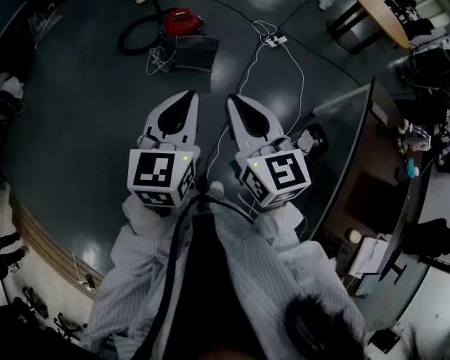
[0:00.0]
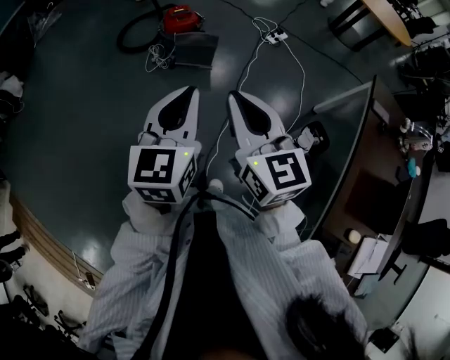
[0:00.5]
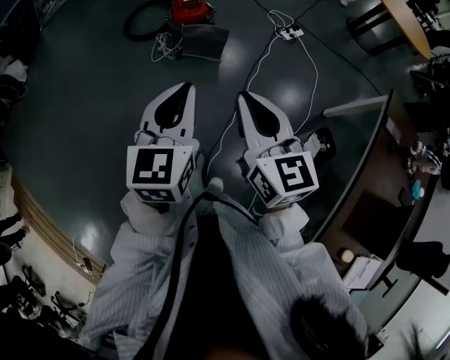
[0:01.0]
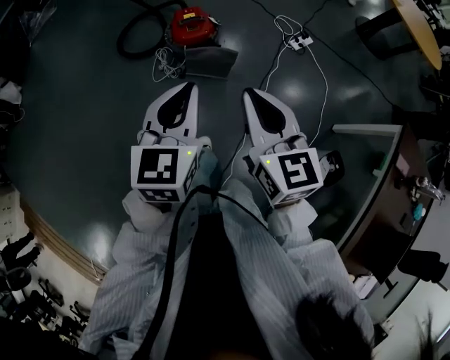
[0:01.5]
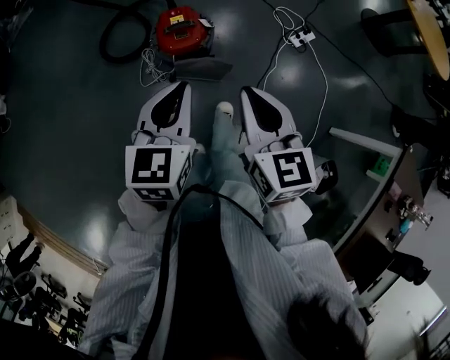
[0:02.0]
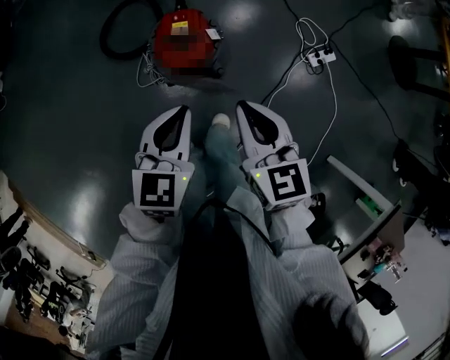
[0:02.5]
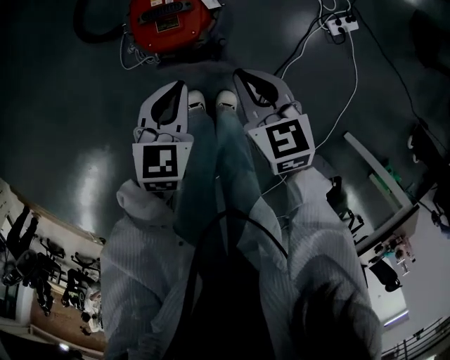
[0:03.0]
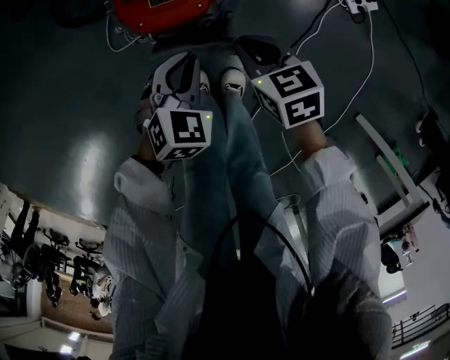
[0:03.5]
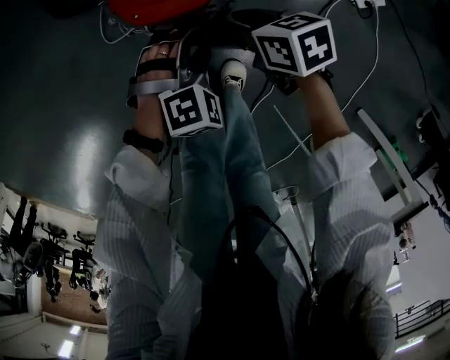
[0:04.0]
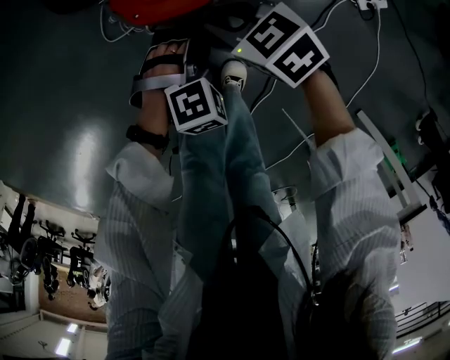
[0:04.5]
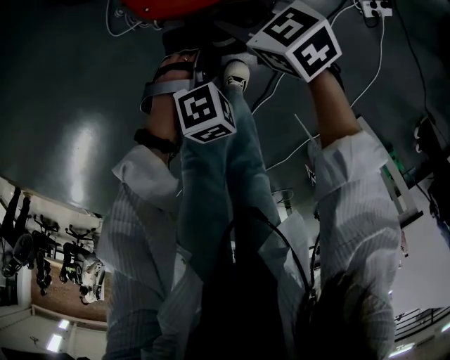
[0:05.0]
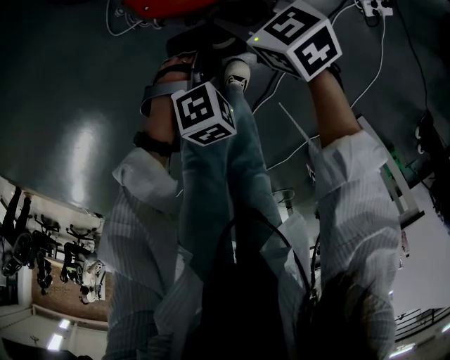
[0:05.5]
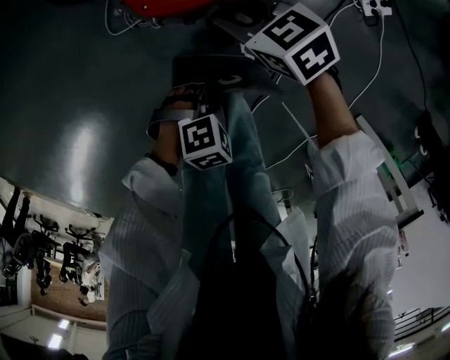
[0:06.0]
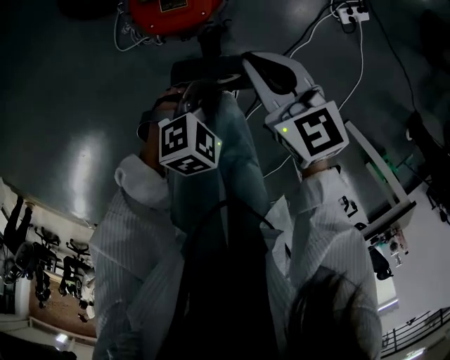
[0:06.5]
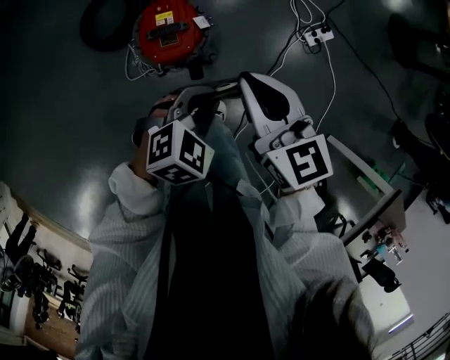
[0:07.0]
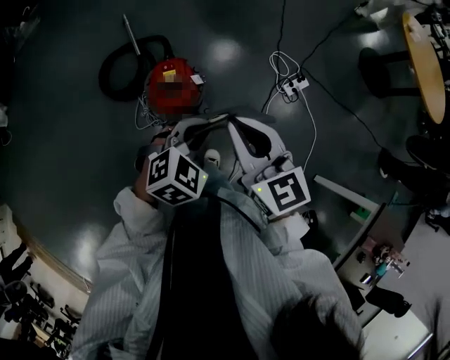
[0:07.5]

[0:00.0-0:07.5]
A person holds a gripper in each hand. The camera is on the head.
0:00.0 to 0:02.0: The pair of grippers is taken forward, some 50 cm.
0:02.0 to 0:04.0: The grippers both shift downward by about 60 cm. The right gripper turns by approximately 60 degrees, and opens up; the left gripper rolls clockwise, seen from behind, by some 50 degrees, and opens its fingers.
0:04.0 to 0:05.5: The left gripper moves roughly 5 cm, and closes up. Meanwhile the right gripper swivels roughly 30 degrees.
0:05.5 to 0:07.5: Both grippers travel together upward, about 50 cm. The left gripper changes its angle by roughly 20 degrees, while the right gripper tilts its fingers roughly 30 degrees upward, and closes up.

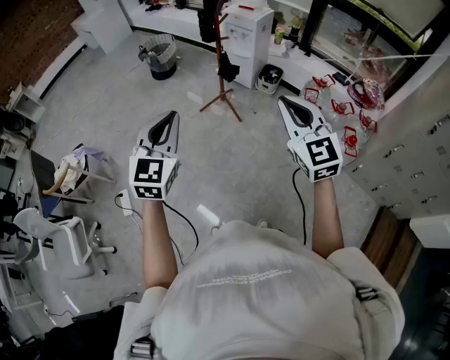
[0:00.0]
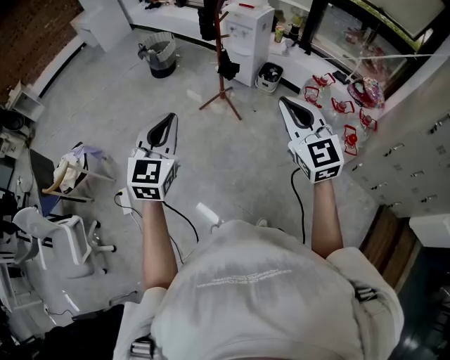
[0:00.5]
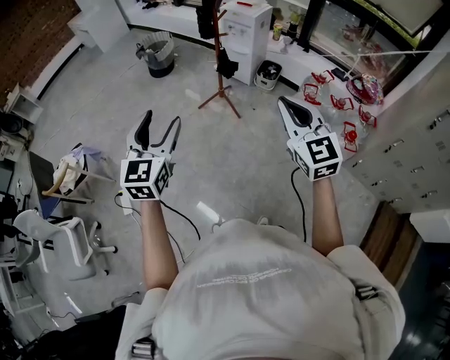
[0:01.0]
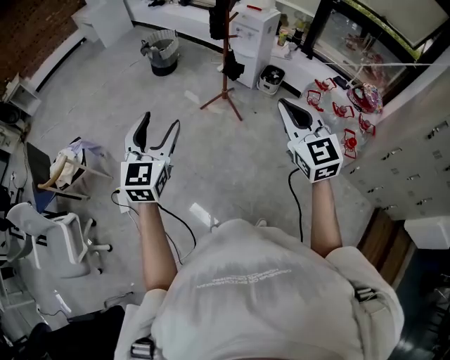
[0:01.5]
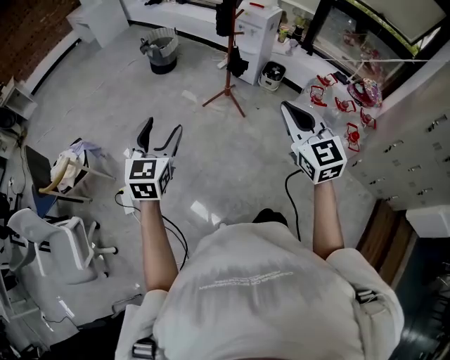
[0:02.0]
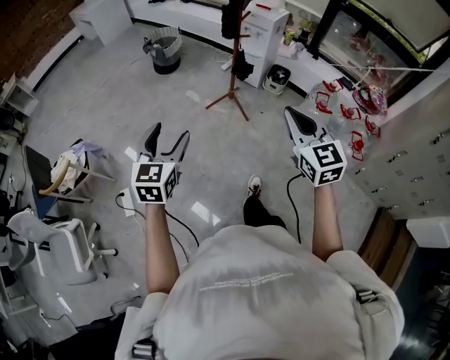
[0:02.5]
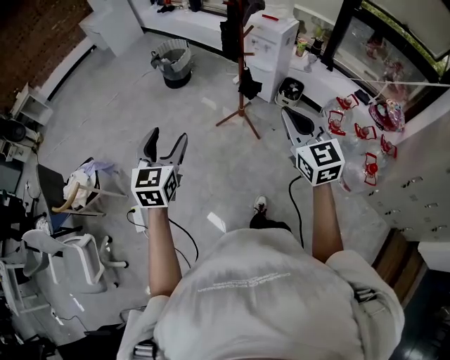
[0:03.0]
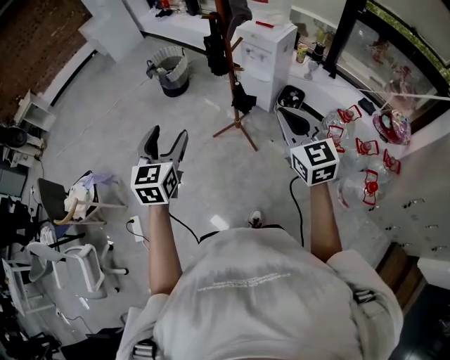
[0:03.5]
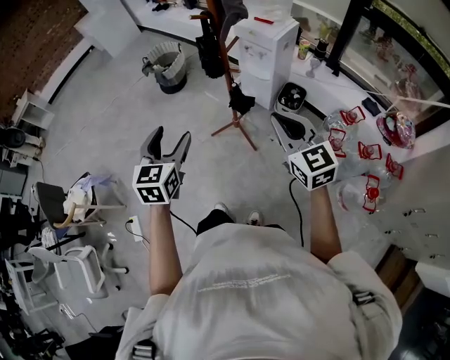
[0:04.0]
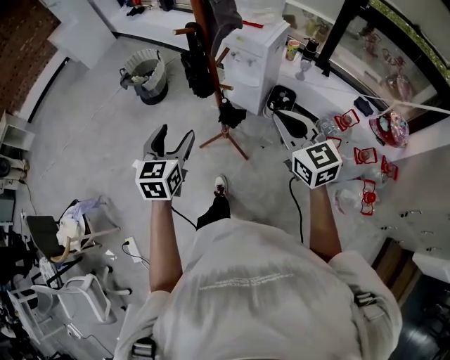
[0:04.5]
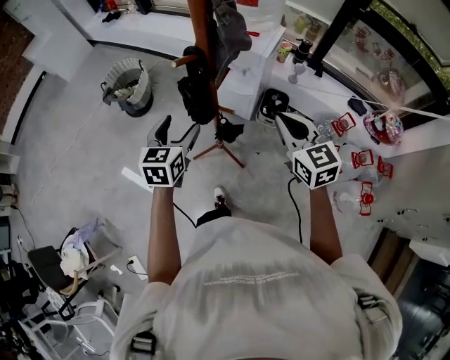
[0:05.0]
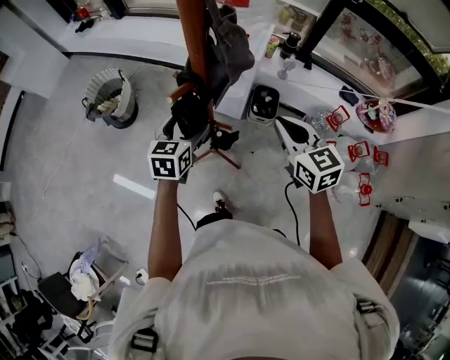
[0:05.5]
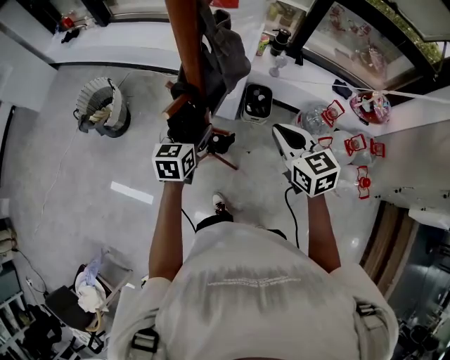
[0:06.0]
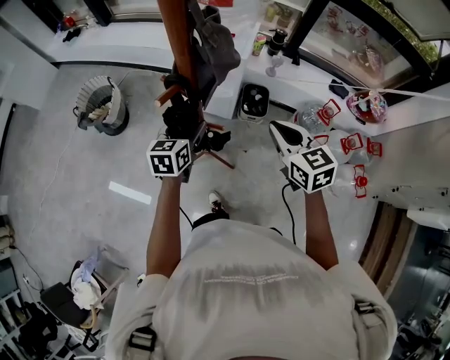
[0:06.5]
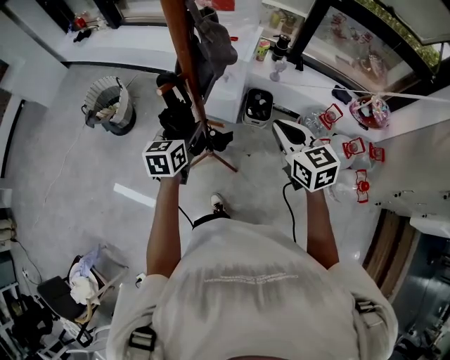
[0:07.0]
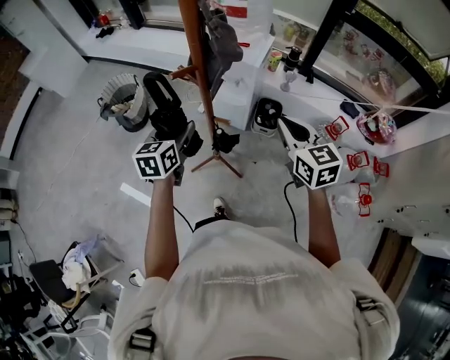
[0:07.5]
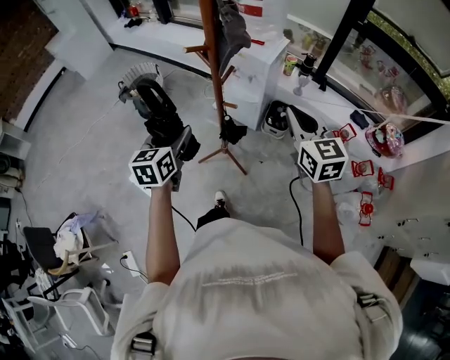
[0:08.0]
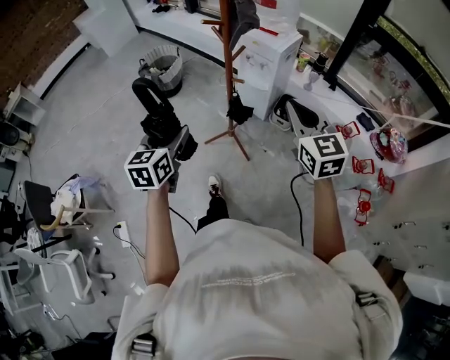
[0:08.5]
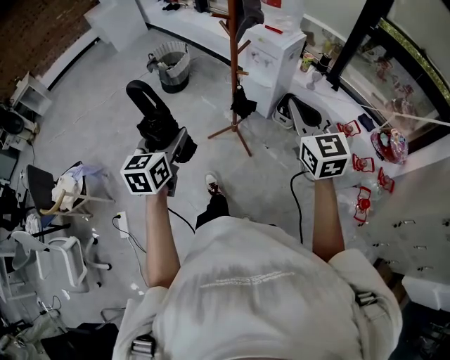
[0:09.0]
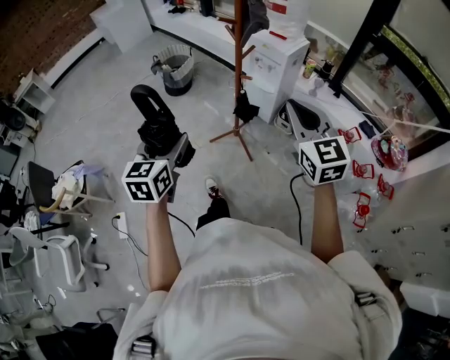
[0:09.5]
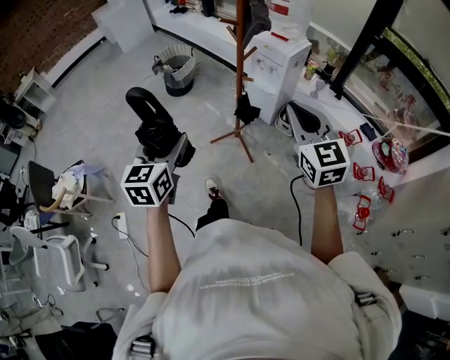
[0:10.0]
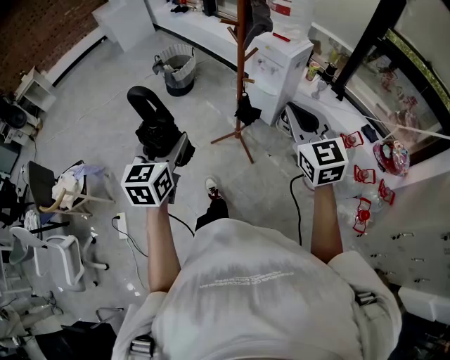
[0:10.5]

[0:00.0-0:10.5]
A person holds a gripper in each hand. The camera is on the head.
0:00.0 to 0:02.0: The right gripper moves to the left, some 10 cm, while the left gripper goes approximately 15 cm to the left and downward, and opens.
0:02.0 to 0:04.0: Both grippers move forward and to the right, some 35 cm.
0:04.0 to 0:06.5: The left gripper moves roughly 40 cm, and turns by approximately 30 degrees. The right gripper ends up roughly 25 cm from where it was, and swivels some 30 degrees.
0:06.5 to 0:08.5: The left gripper travels backward by about 35 cm, and swivels about 30 degrees. The right gripper goes about 20 cm backward and upward, and swivels some 30 degrees.
0:08.5 to 0:10.5: The right gripper ends up approximately 5 cm from where it was. The left gripper heads backward, covering about 10 cm.

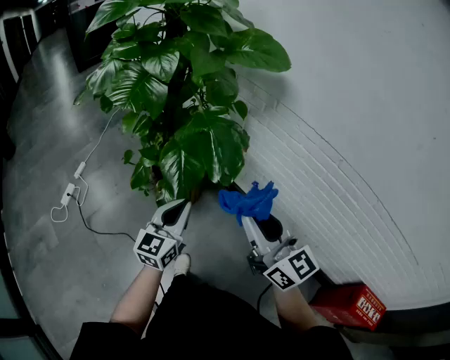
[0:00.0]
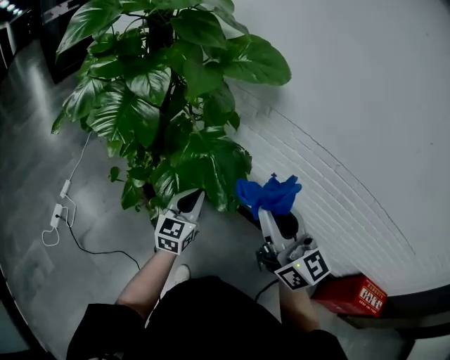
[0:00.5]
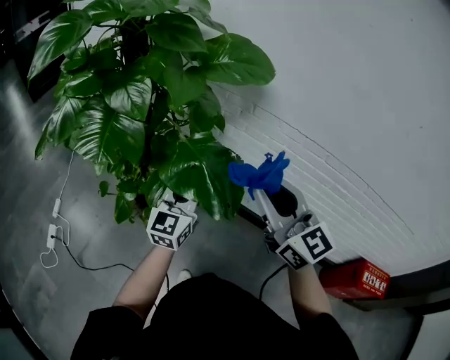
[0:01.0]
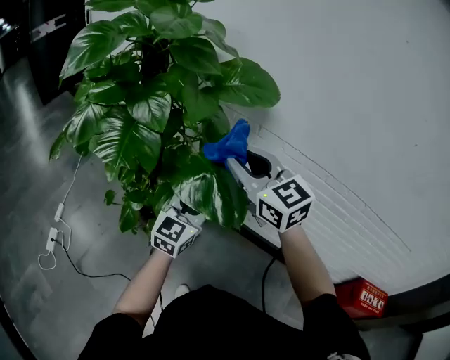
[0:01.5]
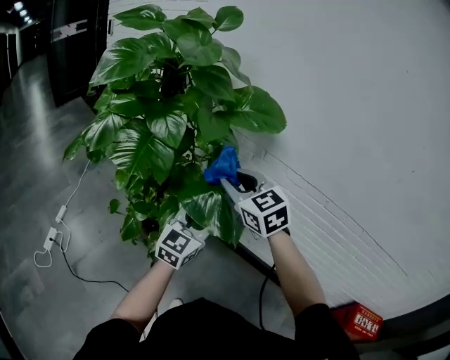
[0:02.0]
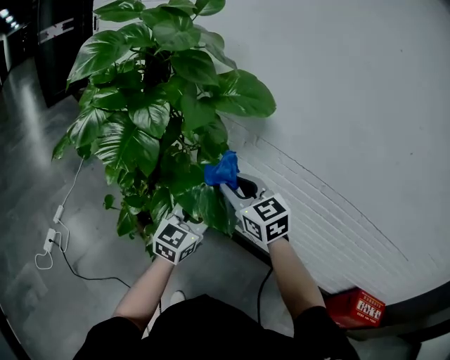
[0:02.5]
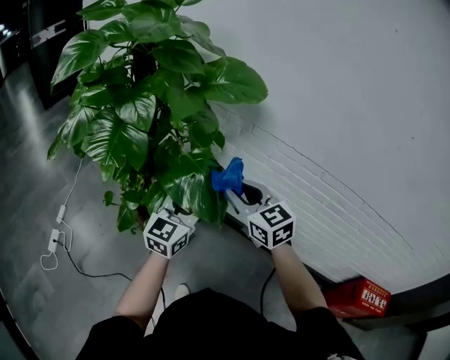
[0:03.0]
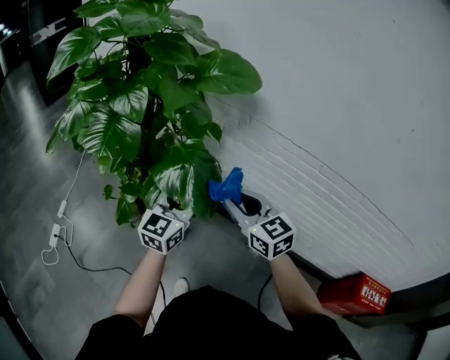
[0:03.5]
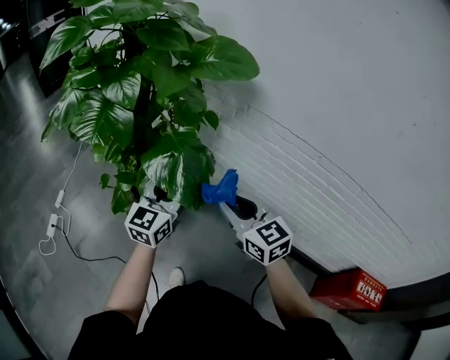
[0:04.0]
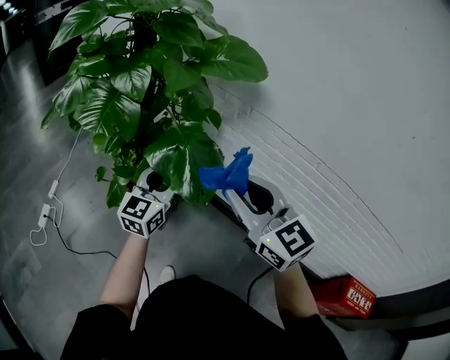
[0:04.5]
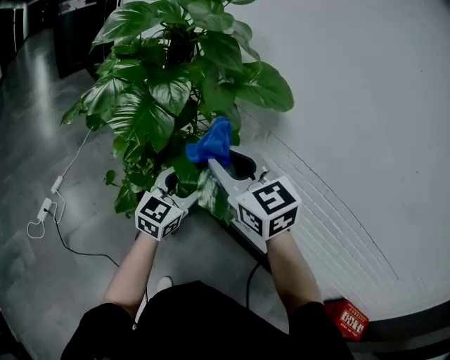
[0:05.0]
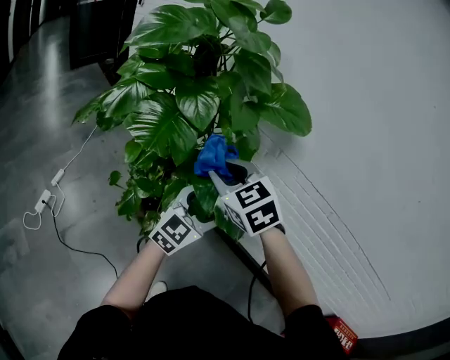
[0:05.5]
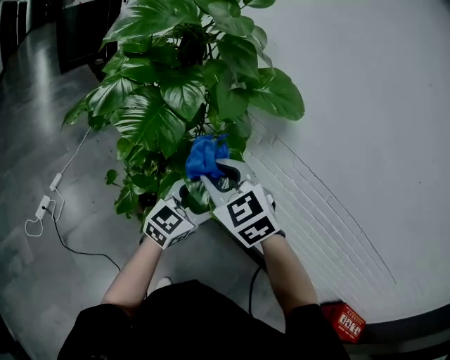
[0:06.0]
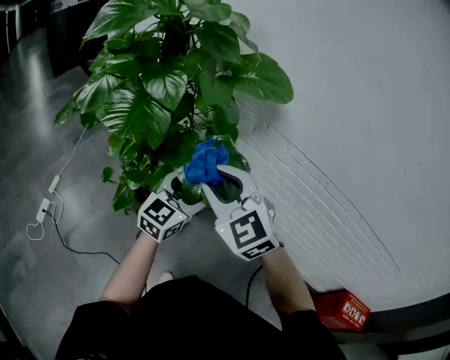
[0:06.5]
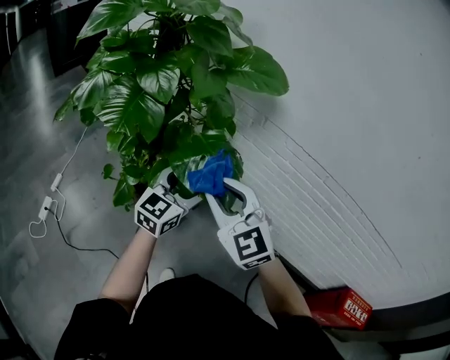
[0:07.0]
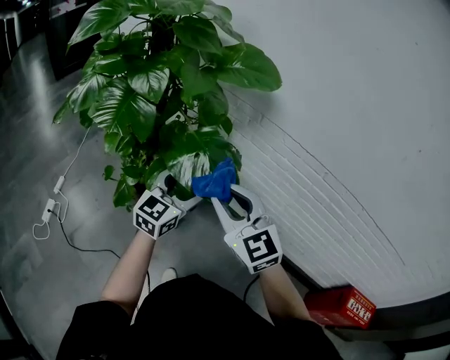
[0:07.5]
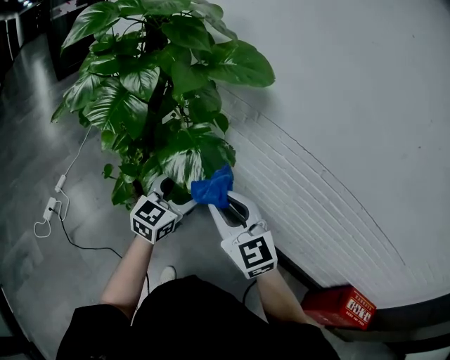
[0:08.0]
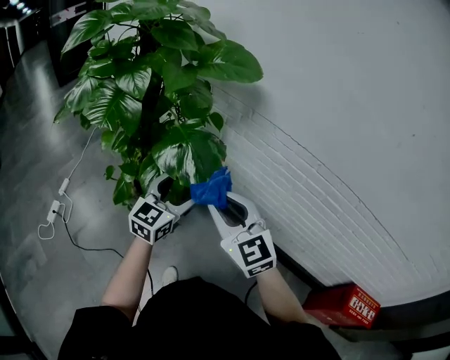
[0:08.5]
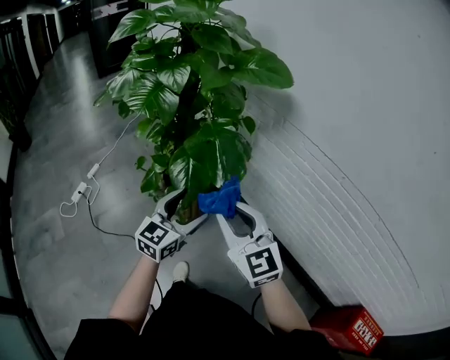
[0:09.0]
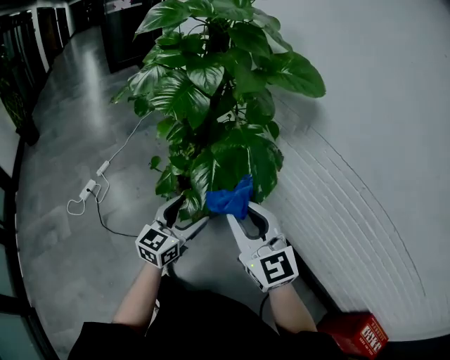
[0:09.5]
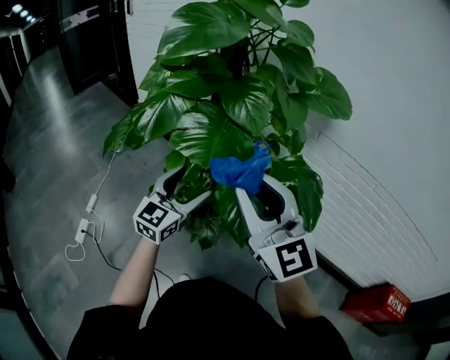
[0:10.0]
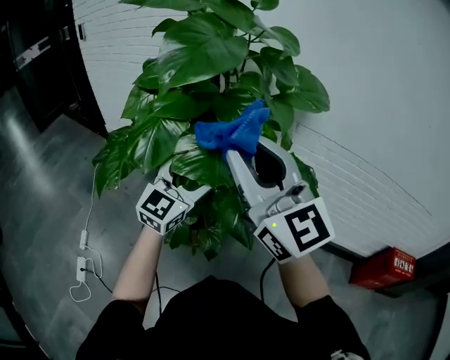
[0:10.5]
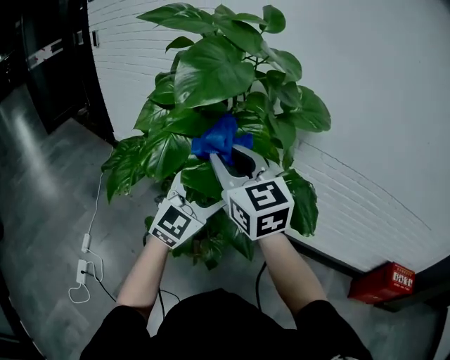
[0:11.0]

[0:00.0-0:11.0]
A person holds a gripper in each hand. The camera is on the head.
0:00.0 to 0:02.0: The right gripper shifts approximately 25 cm forward and to the left, and changes its angle by some 30 degrees. Meanwhile the left gripper goes roughly 15 cm forward and upward, swivels roughly 20 degrees, and opens up.
0:02.0 to 0:03.5: The right gripper travels to the right, downward and backward by some 15 cm.
0:03.5 to 0:05.5: The right gripper shifts approximately 20 cm to the left, upward and forward, and changes its angle by approximately 30 degrees. The left gripper opens.
0:05.5 to 0:07.5: The right gripper heads to the right and backward, covering about 15 cm, and turns by about 20 degrees.
0:07.5 to 0:09.0: The two grippers go roughly 10 cm backward.
0:09.0 to 0:11.0: The right gripper moves roughly 40 cm, and changes its angle by approximately 20 degrees; the left gripper shifts by about 30 cm, and changes its angle by about 40 degrees.
